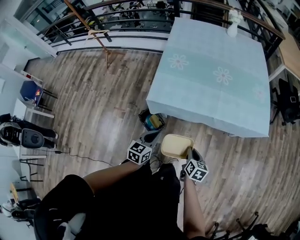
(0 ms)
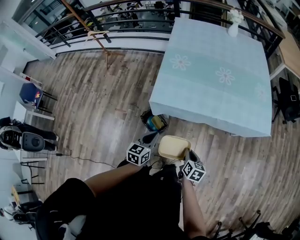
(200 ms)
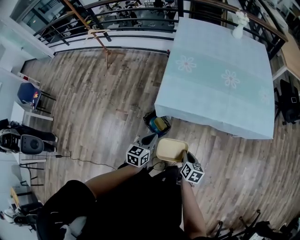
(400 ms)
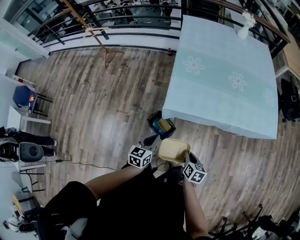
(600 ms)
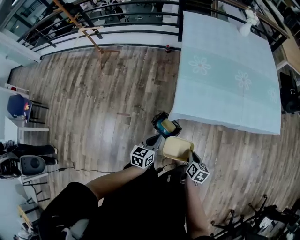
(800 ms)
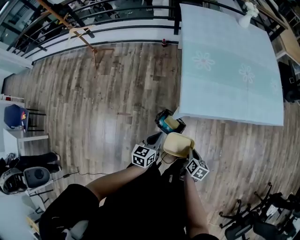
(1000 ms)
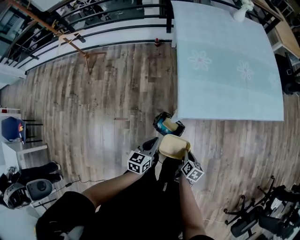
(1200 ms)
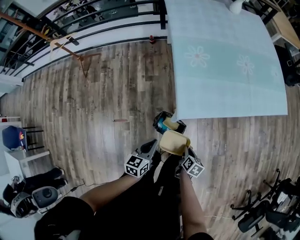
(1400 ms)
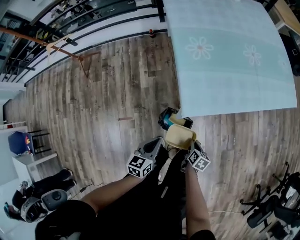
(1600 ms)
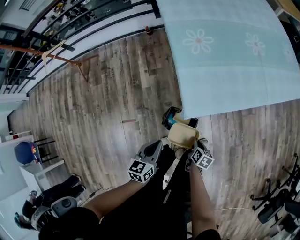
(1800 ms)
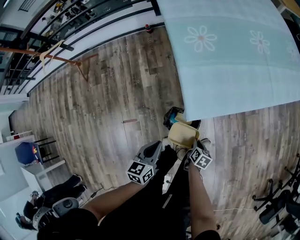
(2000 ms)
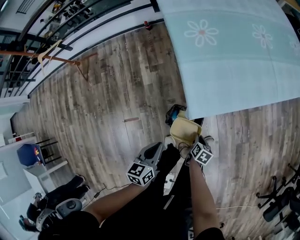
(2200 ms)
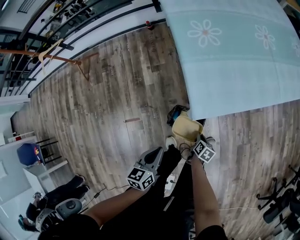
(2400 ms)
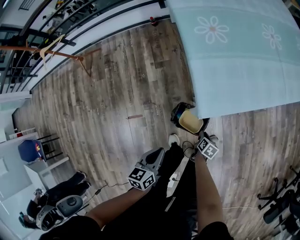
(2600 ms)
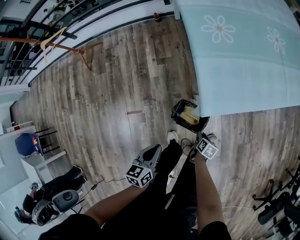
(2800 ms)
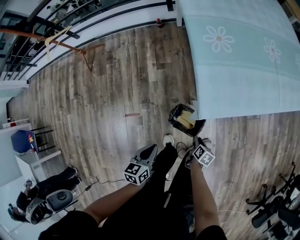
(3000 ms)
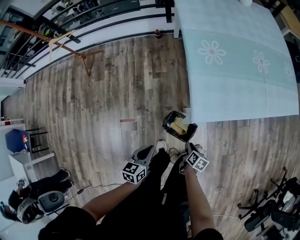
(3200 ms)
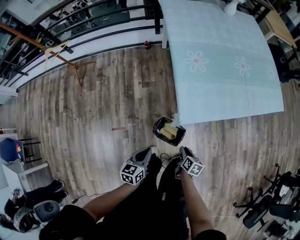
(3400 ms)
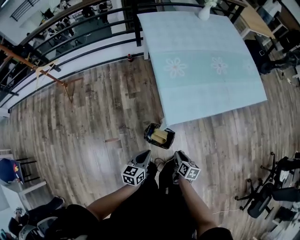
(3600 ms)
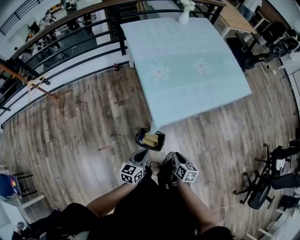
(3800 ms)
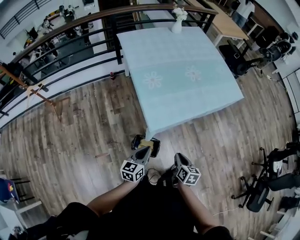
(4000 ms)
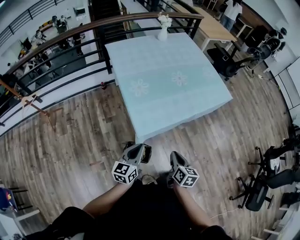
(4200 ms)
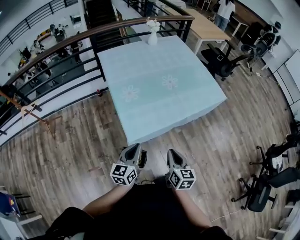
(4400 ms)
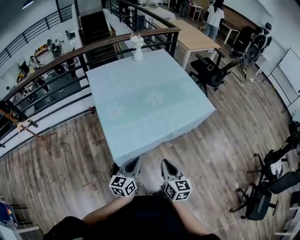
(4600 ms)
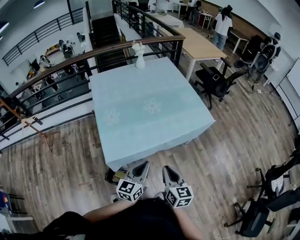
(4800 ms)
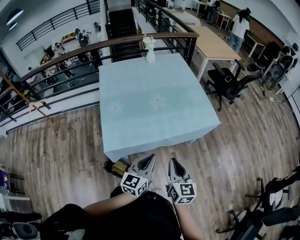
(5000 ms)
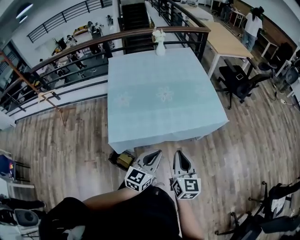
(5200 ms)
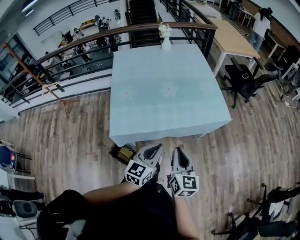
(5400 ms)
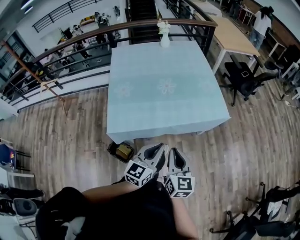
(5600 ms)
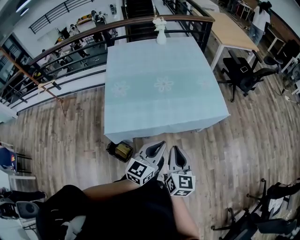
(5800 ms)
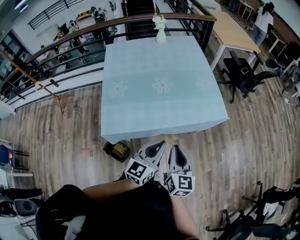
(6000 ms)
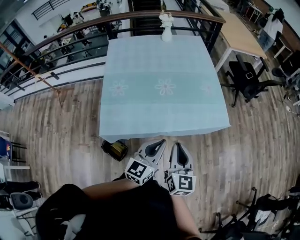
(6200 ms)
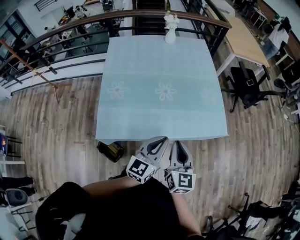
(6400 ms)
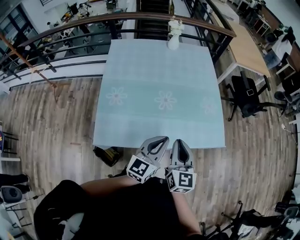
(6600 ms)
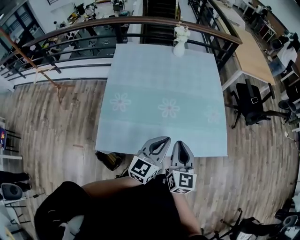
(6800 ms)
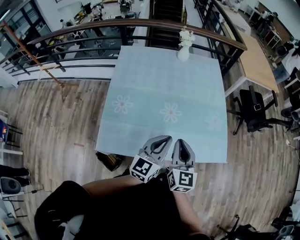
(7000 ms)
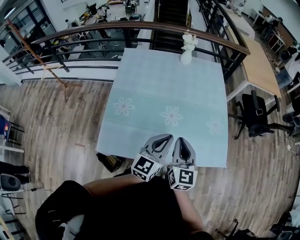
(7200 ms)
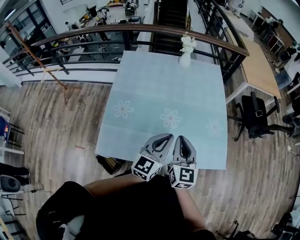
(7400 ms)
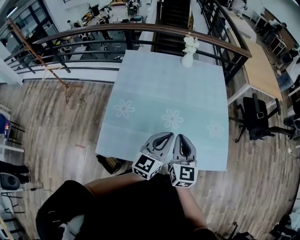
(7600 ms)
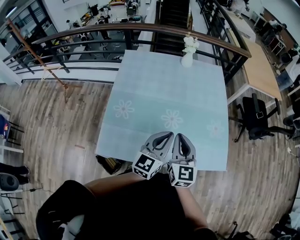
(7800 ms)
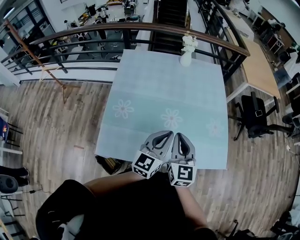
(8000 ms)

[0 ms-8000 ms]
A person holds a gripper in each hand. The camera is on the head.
0 ms to 1600 ms: The right gripper shifts approximately 35 cm to the left and downward, and turns by about 30 degrees. Meanwhile the left gripper shifts some 30 cm to the left.
1600 ms to 3200 ms: The grippers both shift to the left by about 5 cm. The right gripper moves about 15 cm downward and comes back.
3200 ms to 4800 ms: The left gripper goes some 50 cm to the right and upward, and rotates about 40 degrees. Meanwhile the right gripper shifts approximately 60 cm upward and to the right, and tips its fingers upward by approximately 40 degrees.
4800 ms to 6400 ms: The right gripper is displaced forward by about 20 cm. The left gripper is displaced forward and to the right by about 20 cm.
6400 ms to 8000 ms: Both grippers travel together forward, roughly 20 cm.

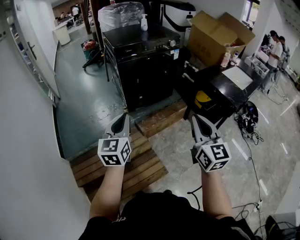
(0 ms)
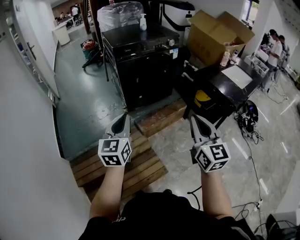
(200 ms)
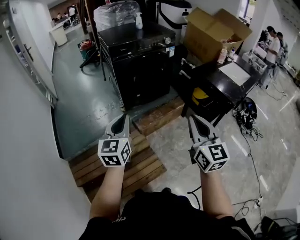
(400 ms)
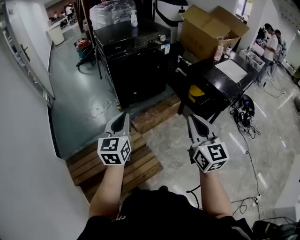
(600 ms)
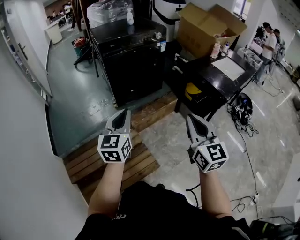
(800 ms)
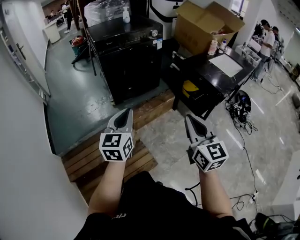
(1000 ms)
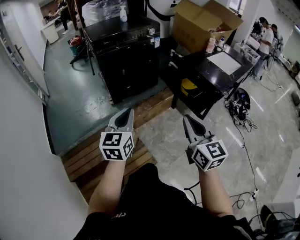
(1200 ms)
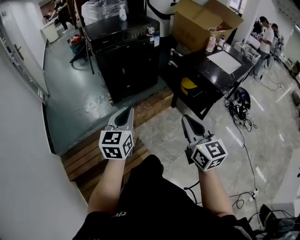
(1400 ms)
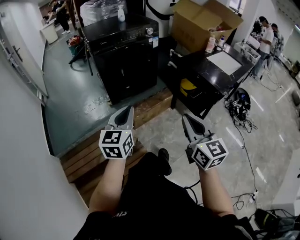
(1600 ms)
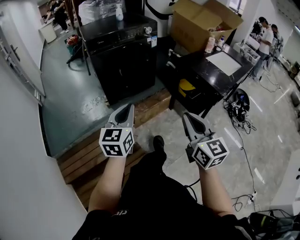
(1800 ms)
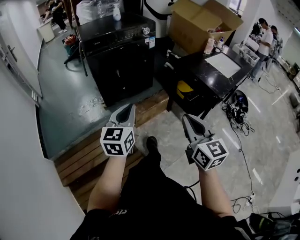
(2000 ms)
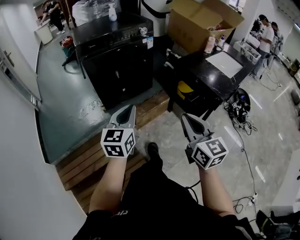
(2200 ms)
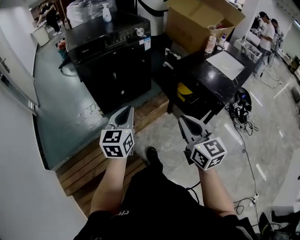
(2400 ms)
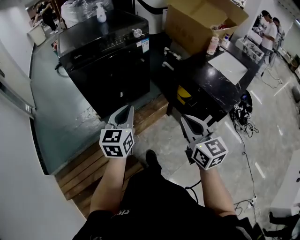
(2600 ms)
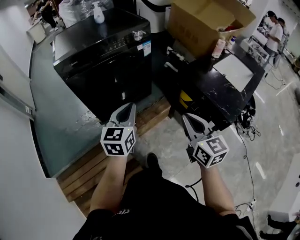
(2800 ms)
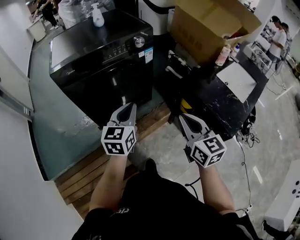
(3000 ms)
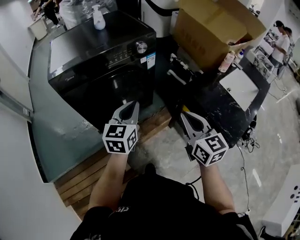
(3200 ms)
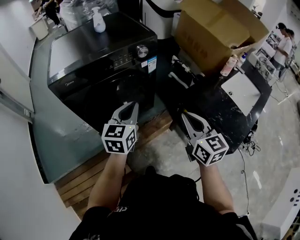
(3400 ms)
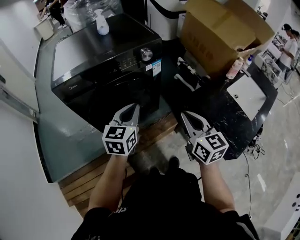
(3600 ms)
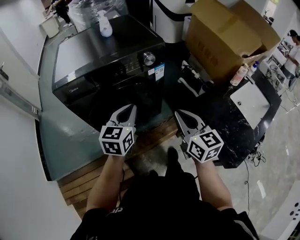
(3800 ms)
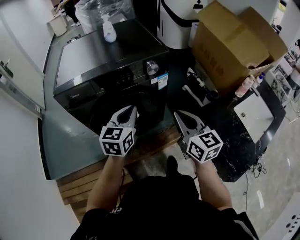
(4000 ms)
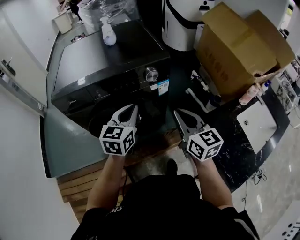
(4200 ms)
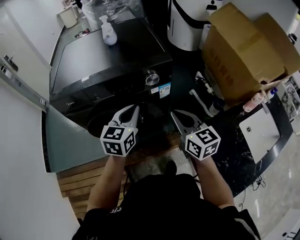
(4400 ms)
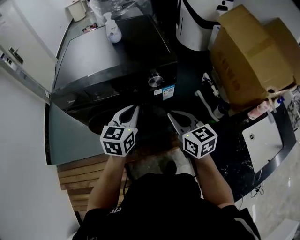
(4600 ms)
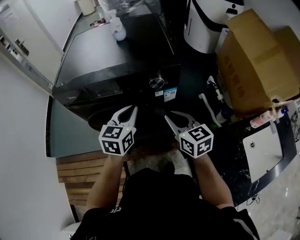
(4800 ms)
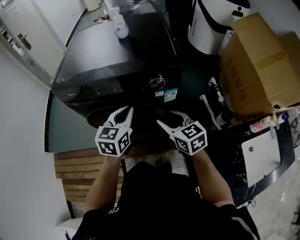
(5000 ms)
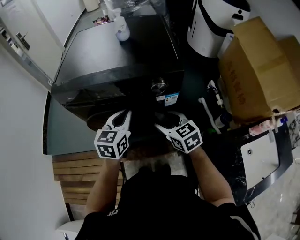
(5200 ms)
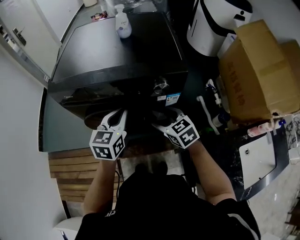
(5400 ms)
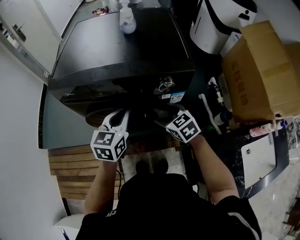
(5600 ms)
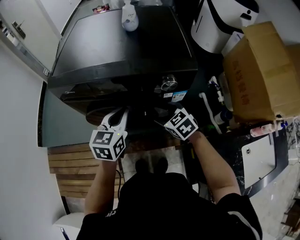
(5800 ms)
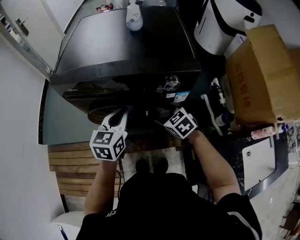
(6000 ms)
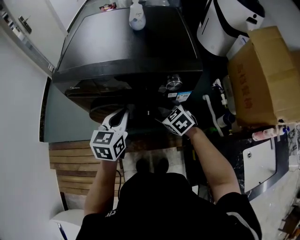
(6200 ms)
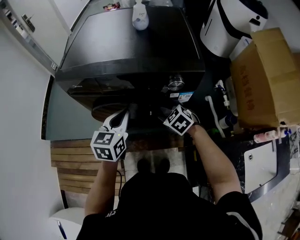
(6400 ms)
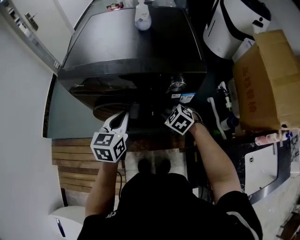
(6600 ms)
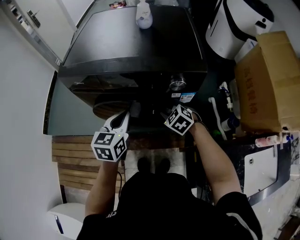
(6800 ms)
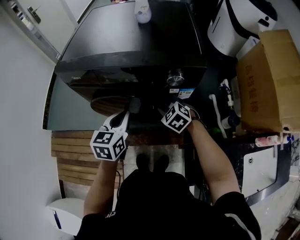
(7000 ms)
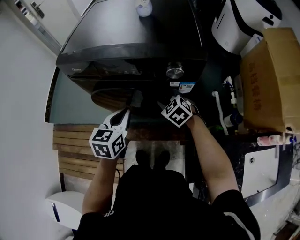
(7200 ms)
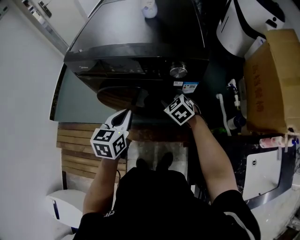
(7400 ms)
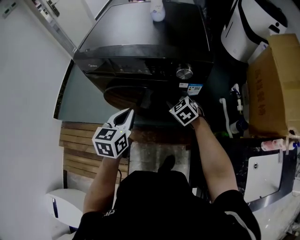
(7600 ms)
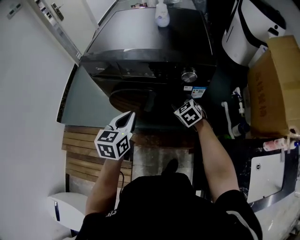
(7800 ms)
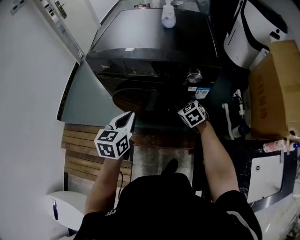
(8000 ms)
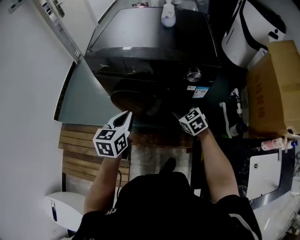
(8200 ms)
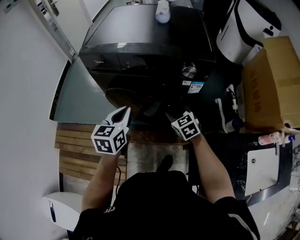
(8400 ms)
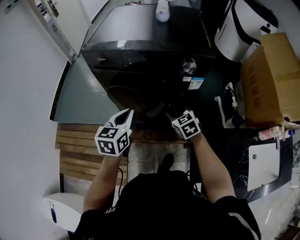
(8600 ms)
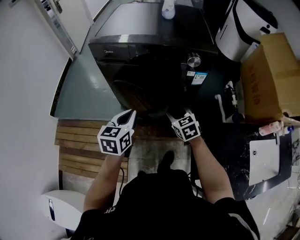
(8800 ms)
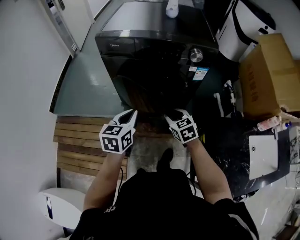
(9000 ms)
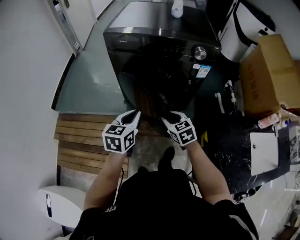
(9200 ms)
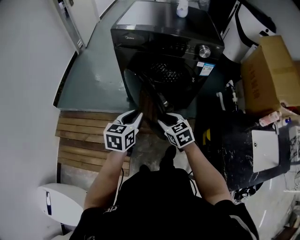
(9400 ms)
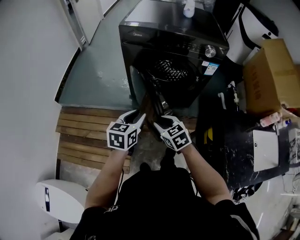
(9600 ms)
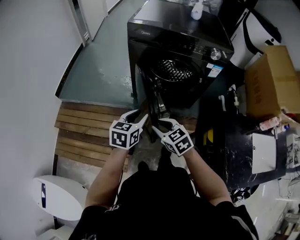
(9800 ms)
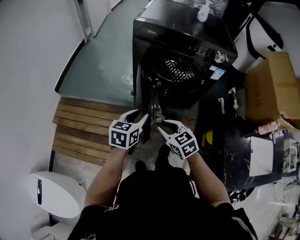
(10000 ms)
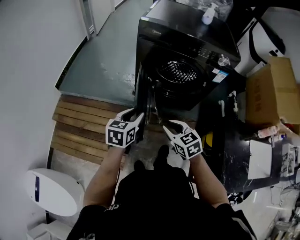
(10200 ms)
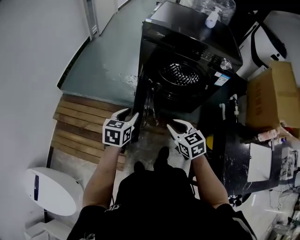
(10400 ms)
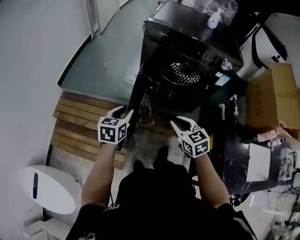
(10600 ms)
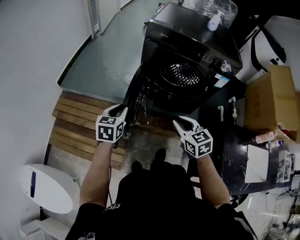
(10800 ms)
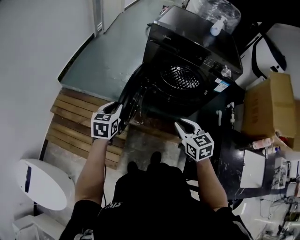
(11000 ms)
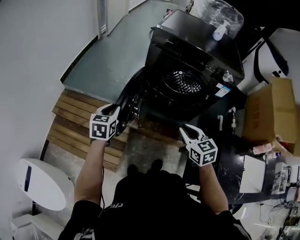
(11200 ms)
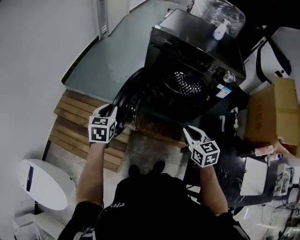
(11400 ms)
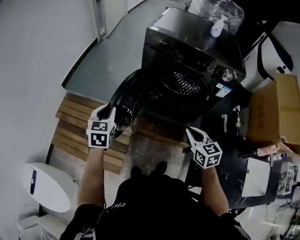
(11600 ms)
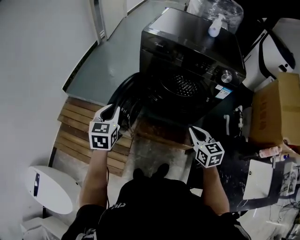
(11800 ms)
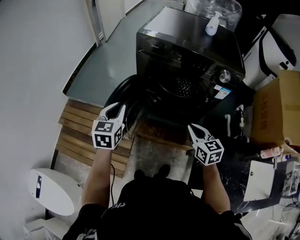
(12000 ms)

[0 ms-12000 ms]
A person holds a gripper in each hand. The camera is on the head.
0 ms to 1600 ms: The right gripper goes roughly 10 cm to the right. The left gripper travels to the right by approximately 15 cm.
1600 ms to 3000 ms: The grippers both shift forward by roughly 40 cm.
3000 ms to 4400 ms: The grippers both shift forward by approximately 25 cm. The right gripper swivels approximately 20 degrees.
4400 ms to 6000 ms: The right gripper heads downward, forward and to the left, covering roughly 20 cm, angles its fingers downward, by some 40 degrees, and opens. The left gripper moves to the left, roughly 10 cm.
6000 ms to 7600 ms: The right gripper closes up. The left gripper goes about 10 cm backward.
7600 ms to 9000 ms: The grippers both shift backward and to the left by some 15 cm.
9000 ms to 10400 ms: Both grippers move to the left and backward, some 20 cm. The left gripper opens up.
10400 ms to 12000 ms: The left gripper travels forward and upward by some 10 cm, and goes to the left and returns, approximately 10 cm each way; the right gripper travels to the right and forward by about 15 cm.

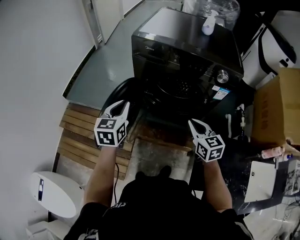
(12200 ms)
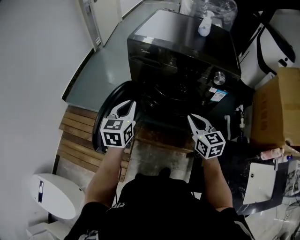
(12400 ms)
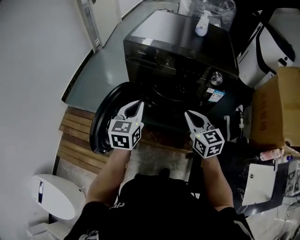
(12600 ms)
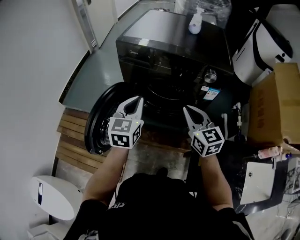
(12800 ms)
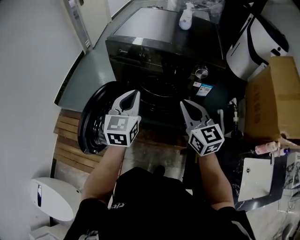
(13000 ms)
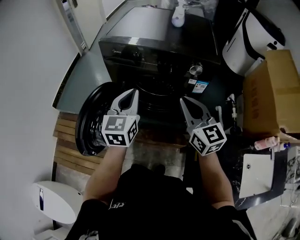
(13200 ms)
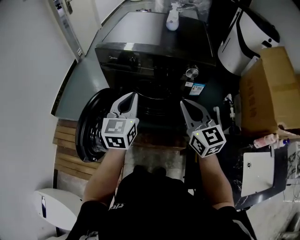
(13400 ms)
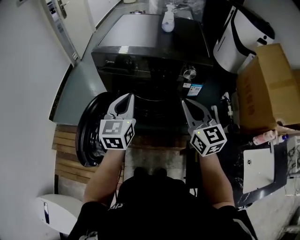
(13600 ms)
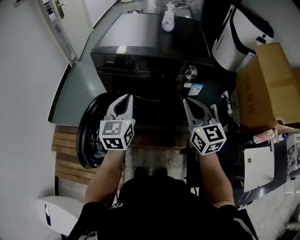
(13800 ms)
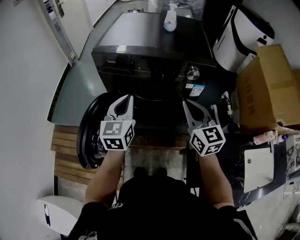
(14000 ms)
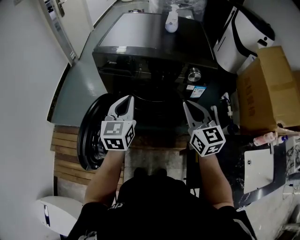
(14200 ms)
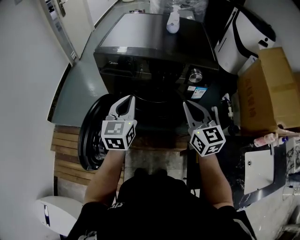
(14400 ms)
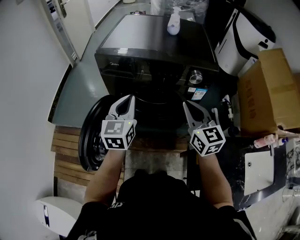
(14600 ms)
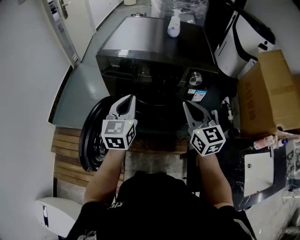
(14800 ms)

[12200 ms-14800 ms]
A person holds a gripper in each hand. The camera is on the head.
12200 ms to 13400 ms: The right gripper heads upward and to the right, covering approximately 15 cm, and swivels approximately 20 degrees. The left gripper travels to the right and upward by about 20 cm.
13400 ms to 14800 ms: The grippers make only small movements.

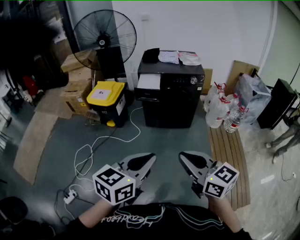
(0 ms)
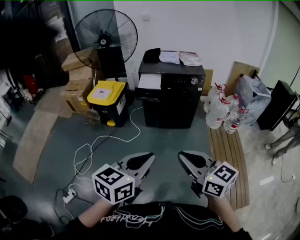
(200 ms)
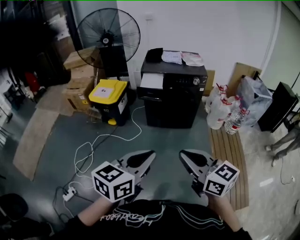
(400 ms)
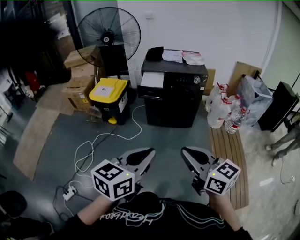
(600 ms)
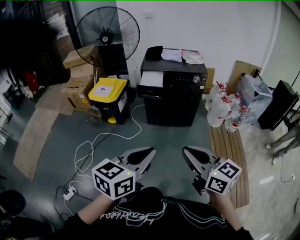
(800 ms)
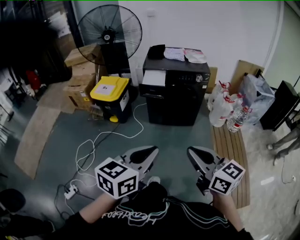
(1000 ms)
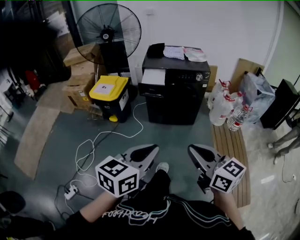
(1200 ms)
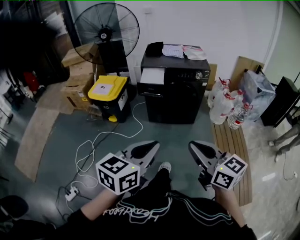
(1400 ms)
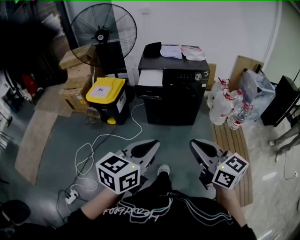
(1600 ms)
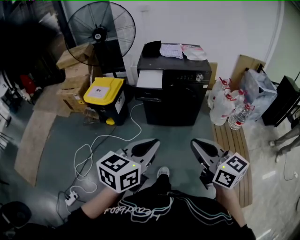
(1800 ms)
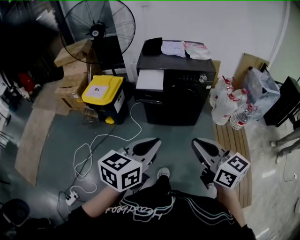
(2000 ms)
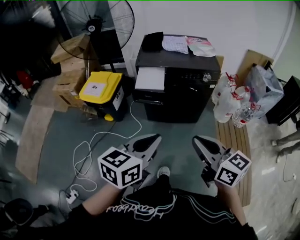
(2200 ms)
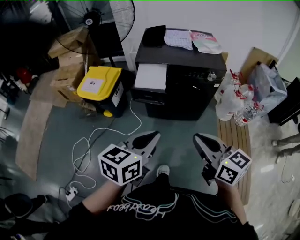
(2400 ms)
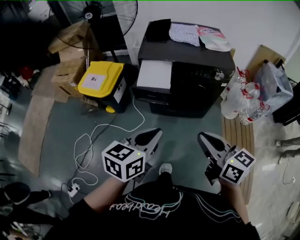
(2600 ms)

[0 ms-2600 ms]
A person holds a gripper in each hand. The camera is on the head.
0 ms to 1200 ms: There are only small adjustments of the grippers.
1200 ms to 2600 ms: Both grippers move forward, some 35 cm.
